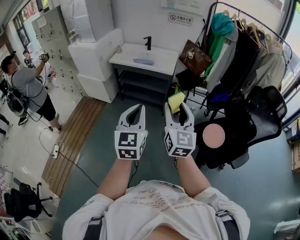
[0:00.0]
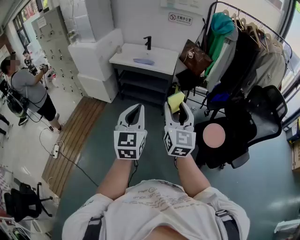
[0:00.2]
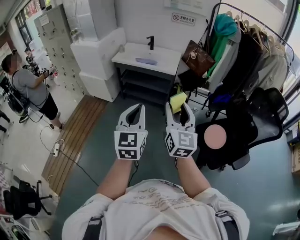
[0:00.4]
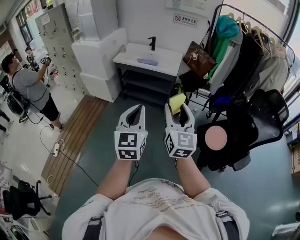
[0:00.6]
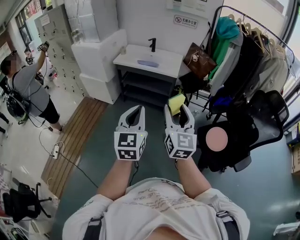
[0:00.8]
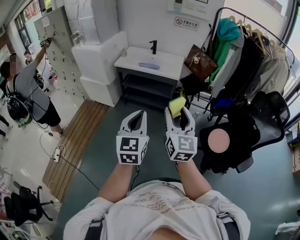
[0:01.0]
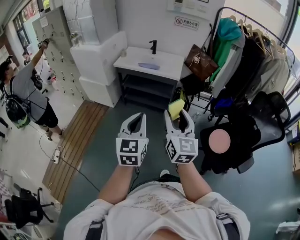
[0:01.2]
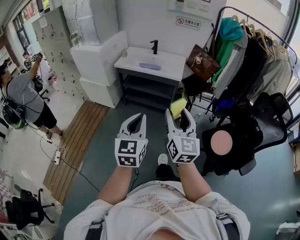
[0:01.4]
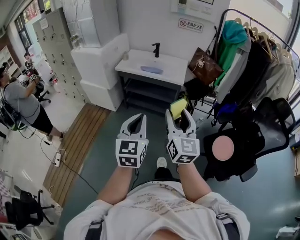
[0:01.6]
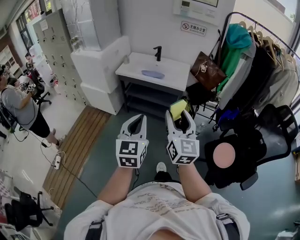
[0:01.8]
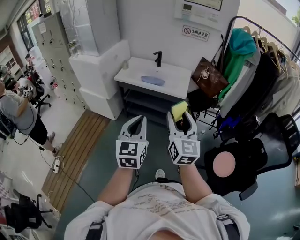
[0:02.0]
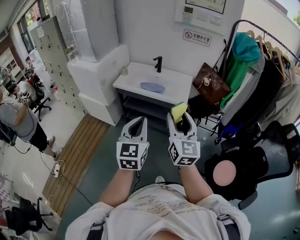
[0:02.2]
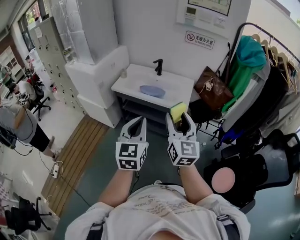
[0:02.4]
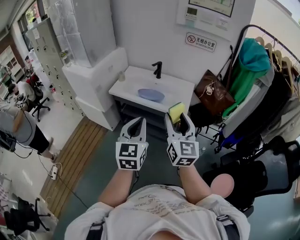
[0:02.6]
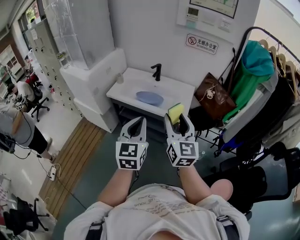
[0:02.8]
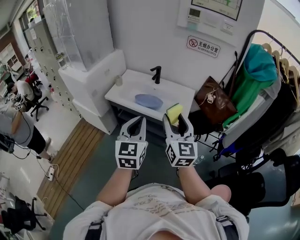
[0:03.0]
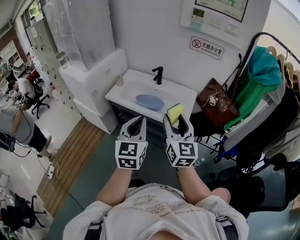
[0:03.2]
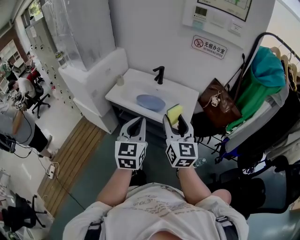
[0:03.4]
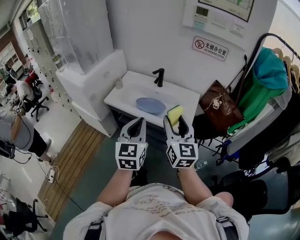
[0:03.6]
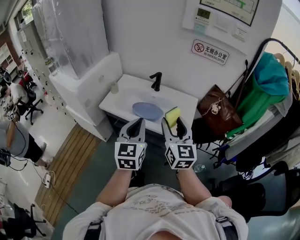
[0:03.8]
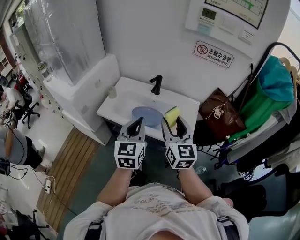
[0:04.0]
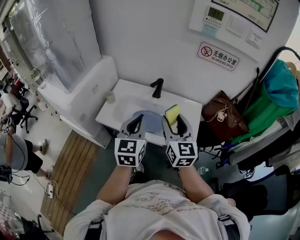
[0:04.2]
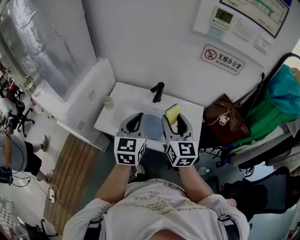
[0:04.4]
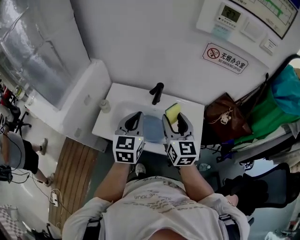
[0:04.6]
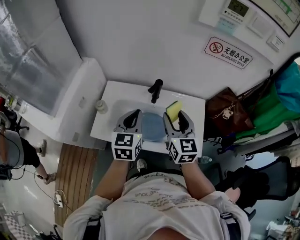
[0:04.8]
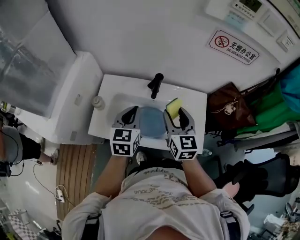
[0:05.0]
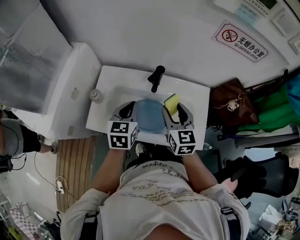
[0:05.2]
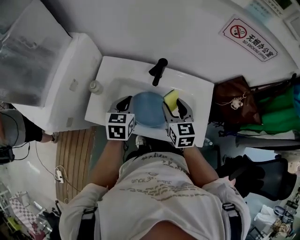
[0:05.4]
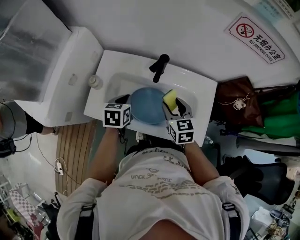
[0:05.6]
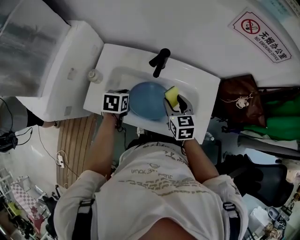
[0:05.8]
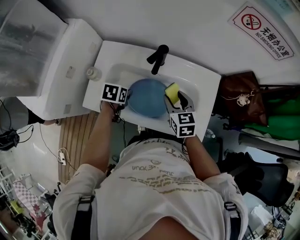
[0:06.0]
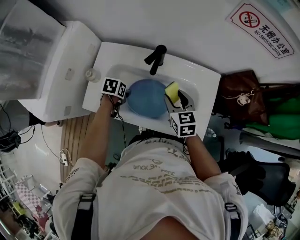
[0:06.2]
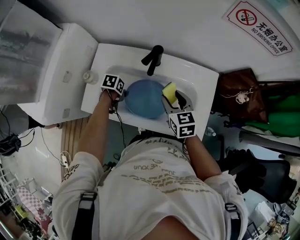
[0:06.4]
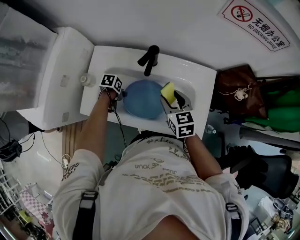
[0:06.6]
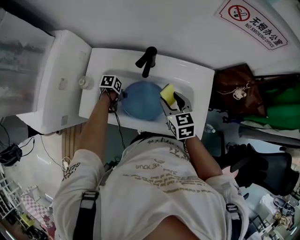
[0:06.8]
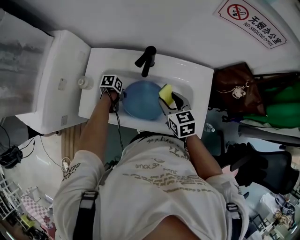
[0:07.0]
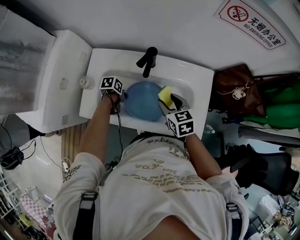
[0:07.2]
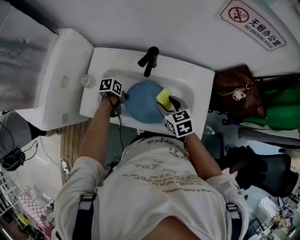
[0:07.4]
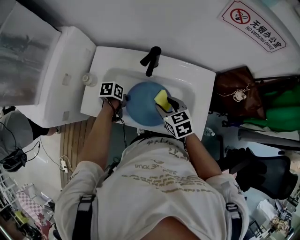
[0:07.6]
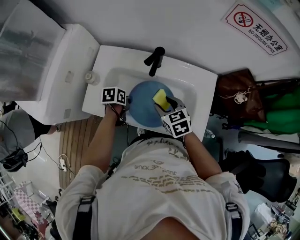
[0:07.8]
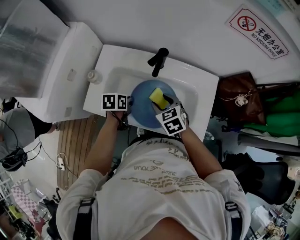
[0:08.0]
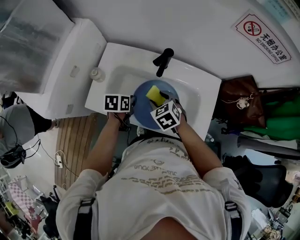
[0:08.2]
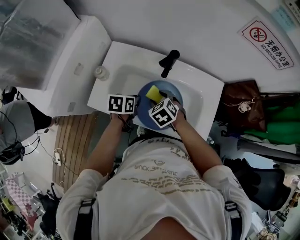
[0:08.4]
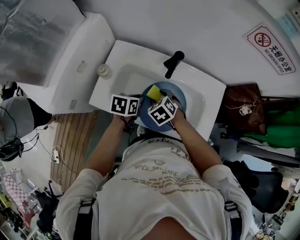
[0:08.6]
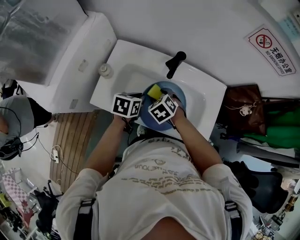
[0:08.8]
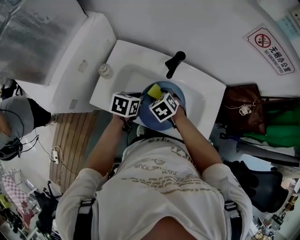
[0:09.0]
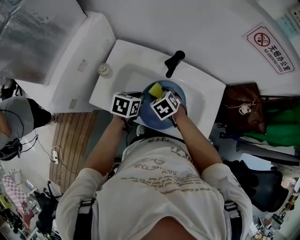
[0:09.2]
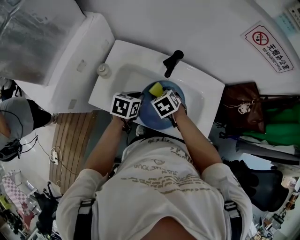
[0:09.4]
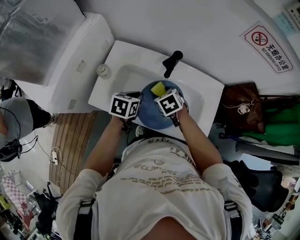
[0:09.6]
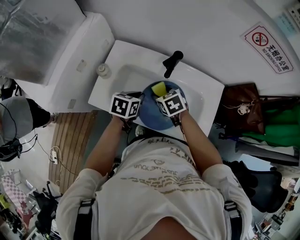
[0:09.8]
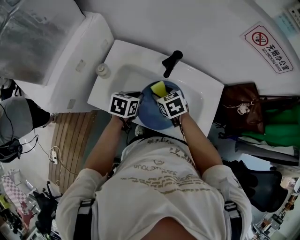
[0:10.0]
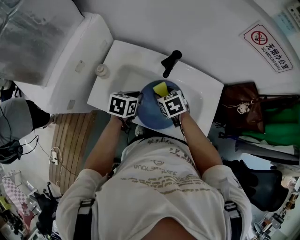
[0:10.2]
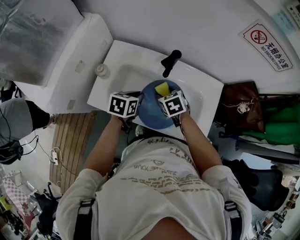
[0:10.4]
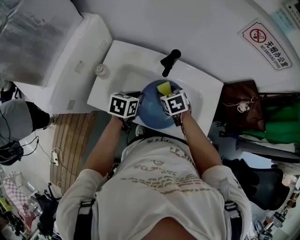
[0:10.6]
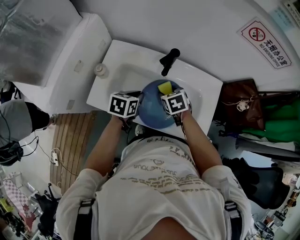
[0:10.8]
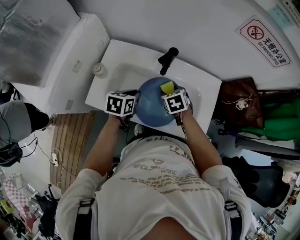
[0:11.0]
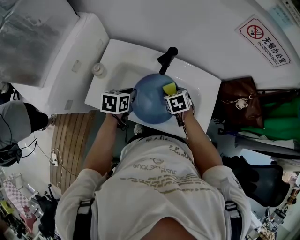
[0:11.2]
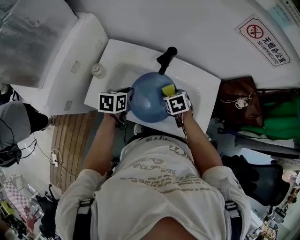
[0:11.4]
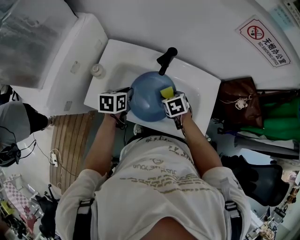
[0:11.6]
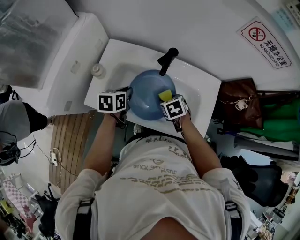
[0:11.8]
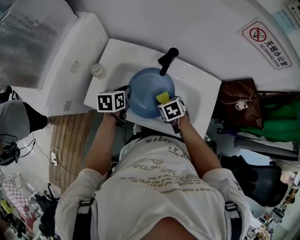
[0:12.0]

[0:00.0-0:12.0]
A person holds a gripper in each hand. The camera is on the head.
0:00.0 to 0:01.6: The left gripper moves to the left and forward, about 10 cm; the right gripper moves forward and to the left, roughly 10 cm.
0:01.6 to 0:03.0: The grippers both shift forward by some 40 cm.
0:03.0 to 0:04.4: The two grippers go approximately 30 cm forward.
0:04.4 to 0:06.0: The two grippers go some 30 cm downward and forward. The right gripper tilts its fingers roughly 30 degrees downward. Meanwhile the left gripper points its fingers approximately 50 degrees further downward, and opens.
0:06.0 to 0:07.6: The left gripper goes some 5 cm downward, rotates some 20 degrees, and closes up.
0:07.6 to 0:09.0: The left gripper goes approximately 10 cm upward, and rotates some 30 degrees; the right gripper goes roughly 10 cm to the left, and turns by approximately 30 degrees.
0:09.0 to 0:10.4: The right gripper shifts by approximately 5 cm.
0:10.4 to 0:12.0: The right gripper moves approximately 5 cm, while the left gripper shifts approximately 5 cm to the left.

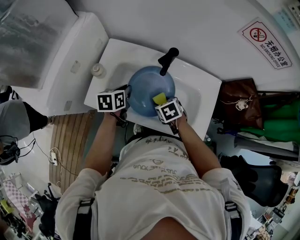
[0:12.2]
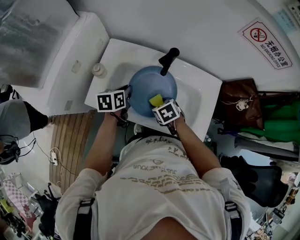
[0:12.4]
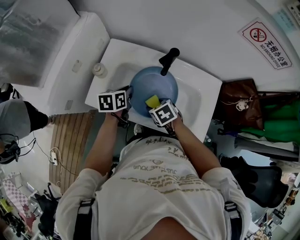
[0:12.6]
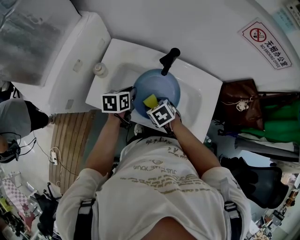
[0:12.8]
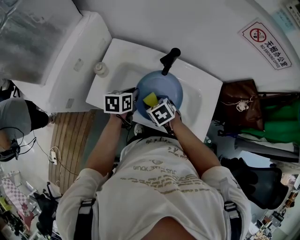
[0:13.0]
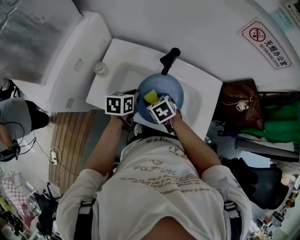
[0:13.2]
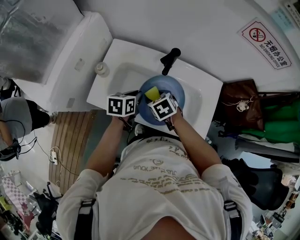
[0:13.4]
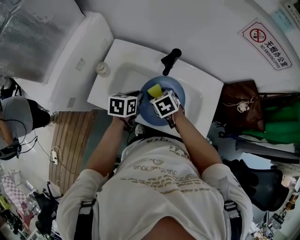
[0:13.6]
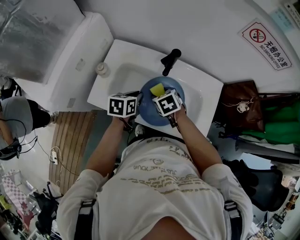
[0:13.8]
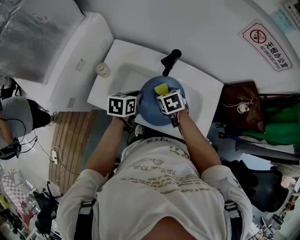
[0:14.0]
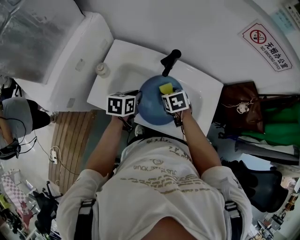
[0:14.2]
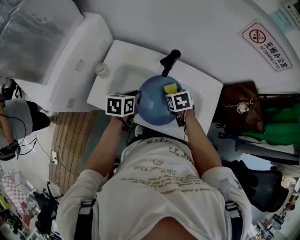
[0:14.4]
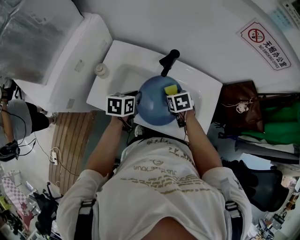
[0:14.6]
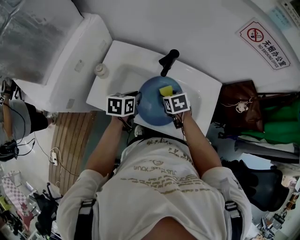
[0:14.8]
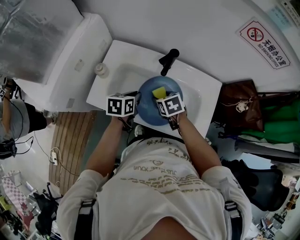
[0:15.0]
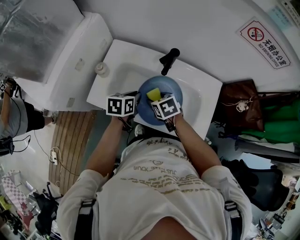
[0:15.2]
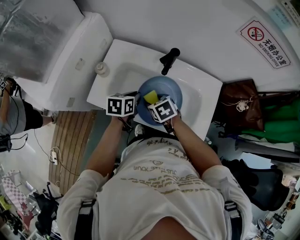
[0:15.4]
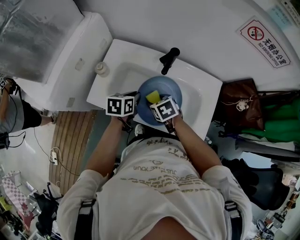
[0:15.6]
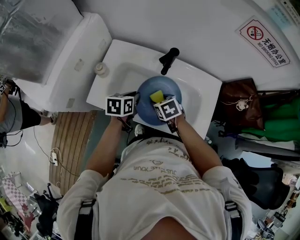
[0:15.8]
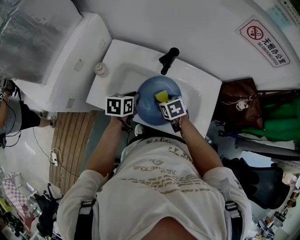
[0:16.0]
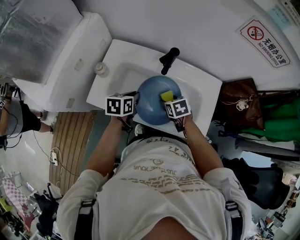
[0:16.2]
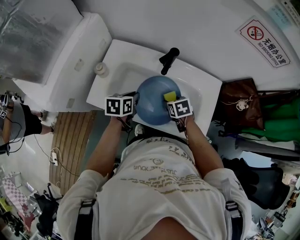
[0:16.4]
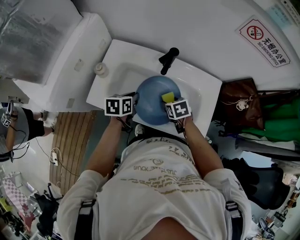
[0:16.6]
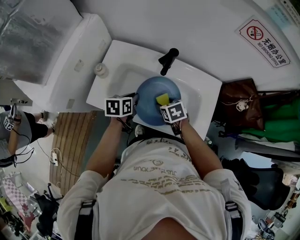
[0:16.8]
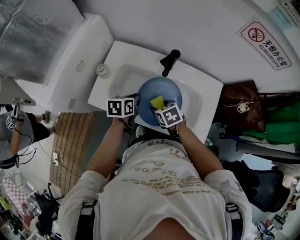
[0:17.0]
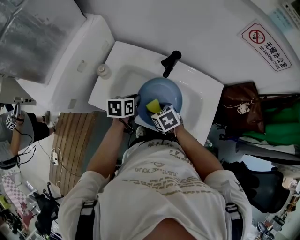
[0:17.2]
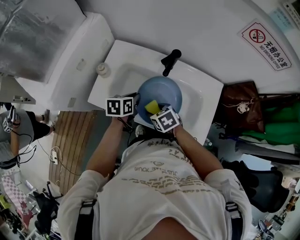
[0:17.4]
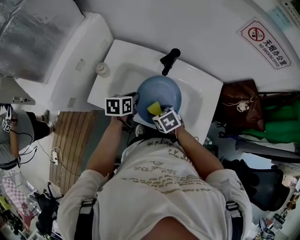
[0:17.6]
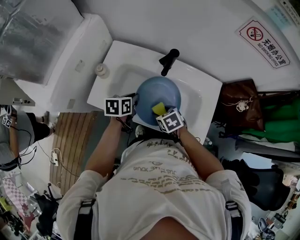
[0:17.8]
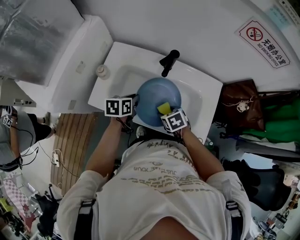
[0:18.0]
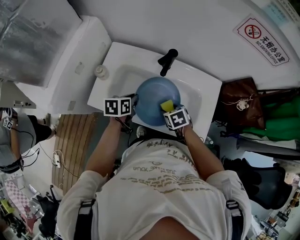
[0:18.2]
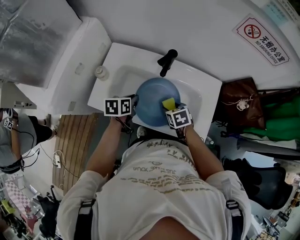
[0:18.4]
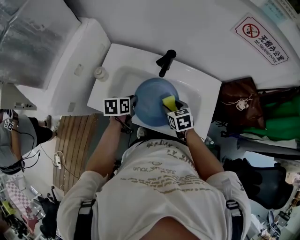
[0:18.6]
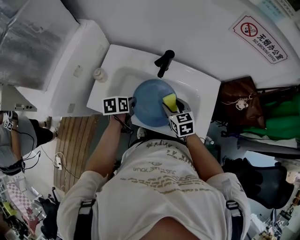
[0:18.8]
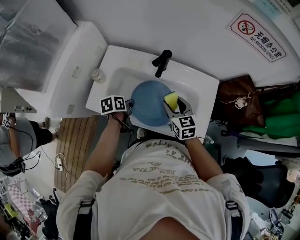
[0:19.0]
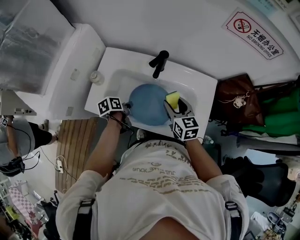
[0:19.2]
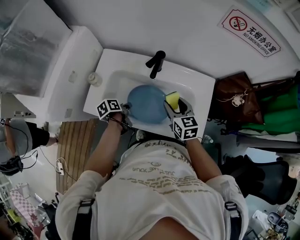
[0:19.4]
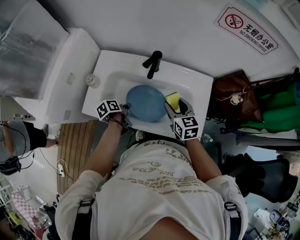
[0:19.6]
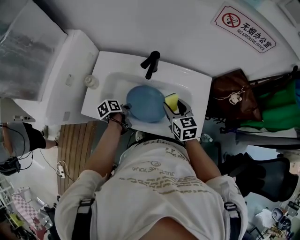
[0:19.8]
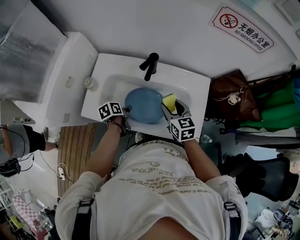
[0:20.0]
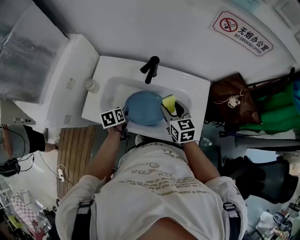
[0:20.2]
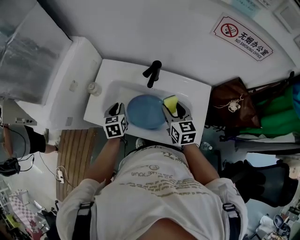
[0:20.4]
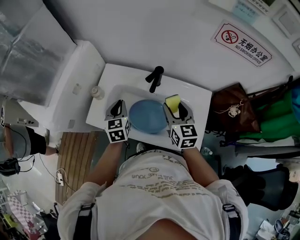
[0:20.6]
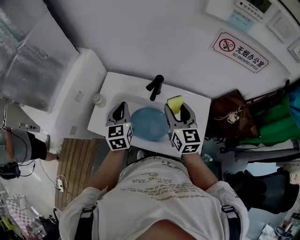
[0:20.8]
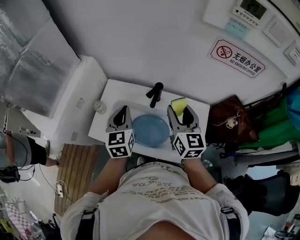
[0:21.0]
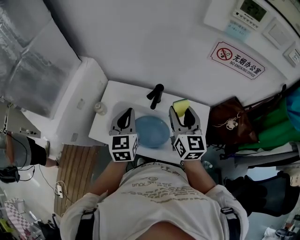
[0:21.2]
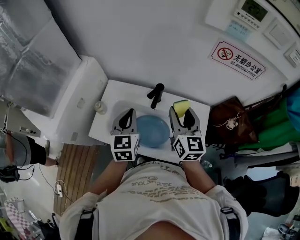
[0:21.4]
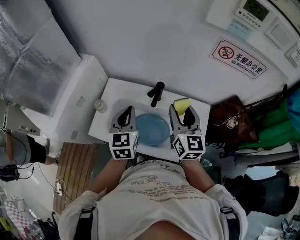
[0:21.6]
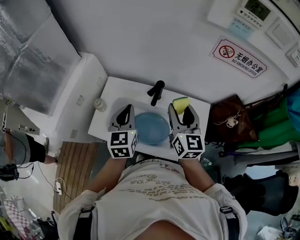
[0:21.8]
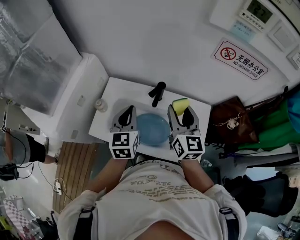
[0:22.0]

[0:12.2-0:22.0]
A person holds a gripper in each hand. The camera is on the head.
0:12.2 to 0:13.6: The right gripper heads upward, covering some 5 cm, while the left gripper ends up about 5 cm from where it was.
0:15.0 to 0:16.4: The right gripper heads to the right, covering roughly 5 cm.
0:16.4 to 0:17.8: The right gripper travels to the left and backward by some 10 cm.
0:17.8 to 0:19.2: The left gripper goes some 5 cm downward, and rotates some 30 degrees, while the right gripper travels upward, to the right and forward by some 15 cm, and points its fingers about 40 degrees further upward.
0:19.2 to 0:20.6: The right gripper moves upward, about 10 cm; the left gripper travels upward and forward by about 15 cm, rotates approximately 60 degrees, and opens, then closes again.
0:20.6 to 0:22.0: The left gripper heads upward and to the right, covering approximately 15 cm; the right gripper travels upward by some 10 cm.

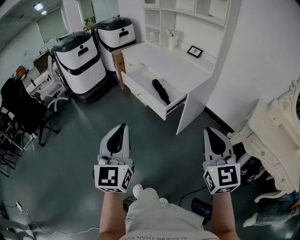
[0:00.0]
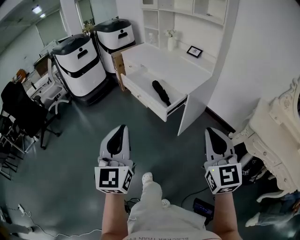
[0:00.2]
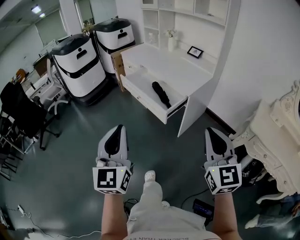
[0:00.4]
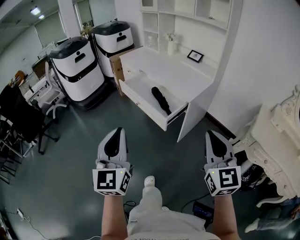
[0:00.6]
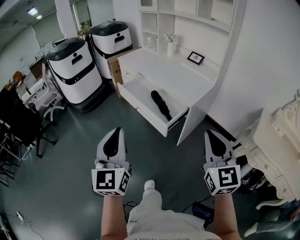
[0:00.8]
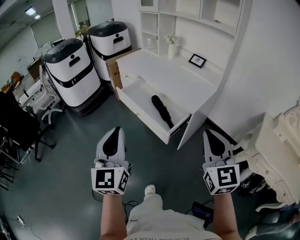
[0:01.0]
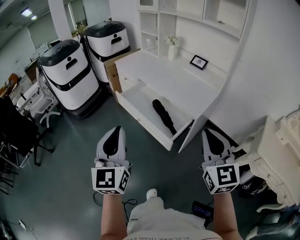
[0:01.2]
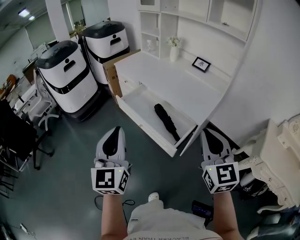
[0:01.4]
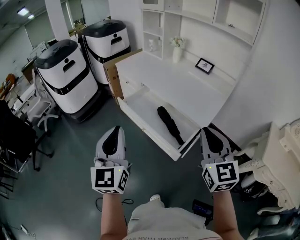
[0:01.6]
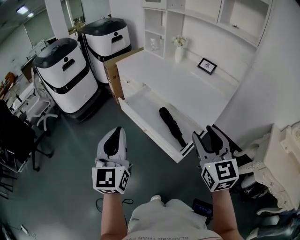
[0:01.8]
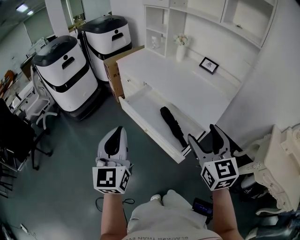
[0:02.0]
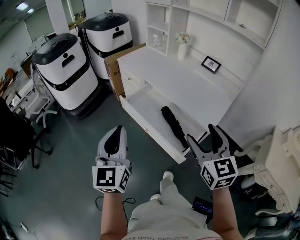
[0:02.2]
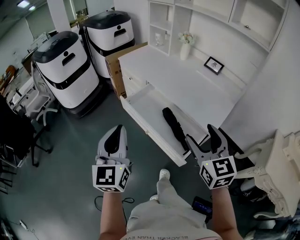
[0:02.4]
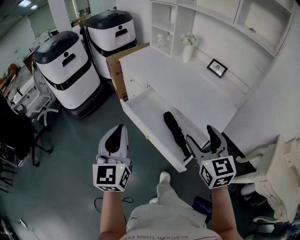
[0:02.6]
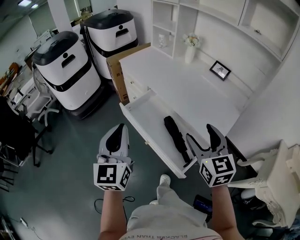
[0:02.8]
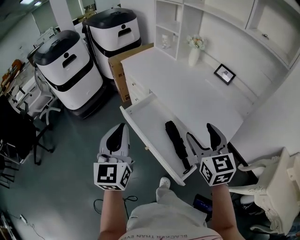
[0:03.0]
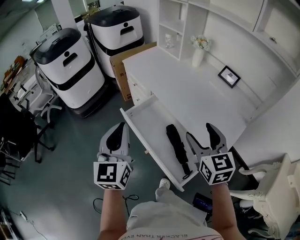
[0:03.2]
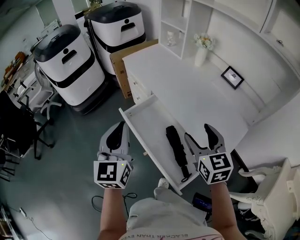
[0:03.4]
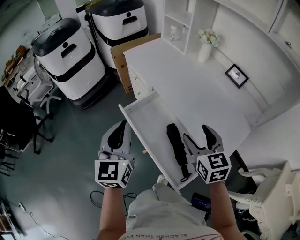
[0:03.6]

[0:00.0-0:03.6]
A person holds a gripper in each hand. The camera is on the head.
0:00.0 to 0:01.8: The two grippers go approximately 35 cm forward. The right gripper opens its fingers.
0:01.8 to 0:03.6: The left gripper is displaced forward by about 25 cm. Meanwhile the right gripper moves forward and downward, some 30 cm, swivels about 20 degrees, and opens.
